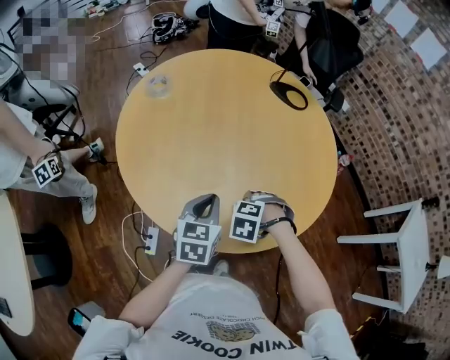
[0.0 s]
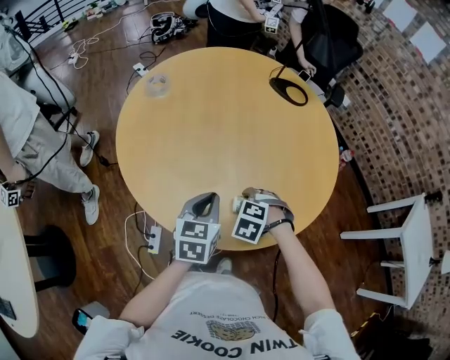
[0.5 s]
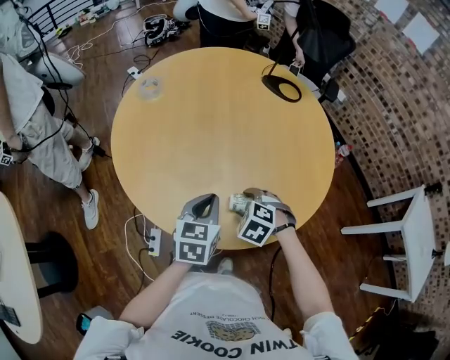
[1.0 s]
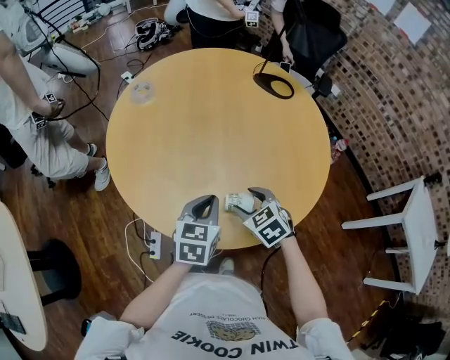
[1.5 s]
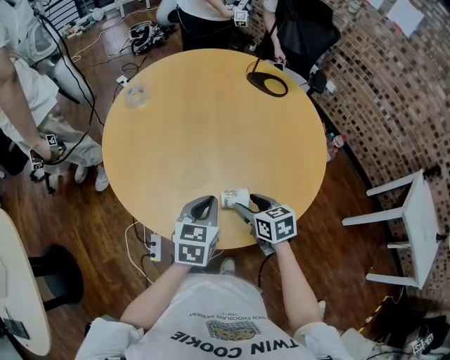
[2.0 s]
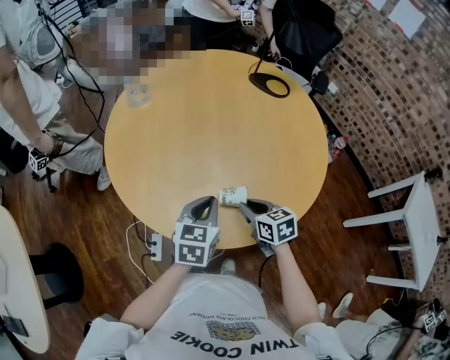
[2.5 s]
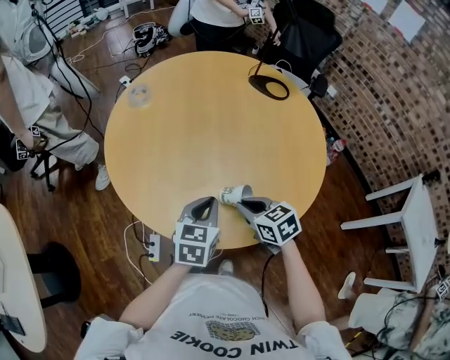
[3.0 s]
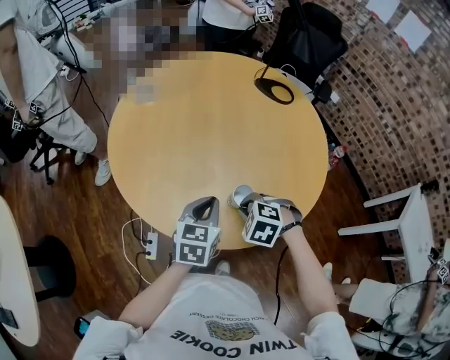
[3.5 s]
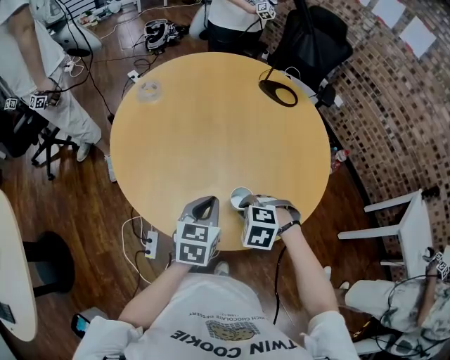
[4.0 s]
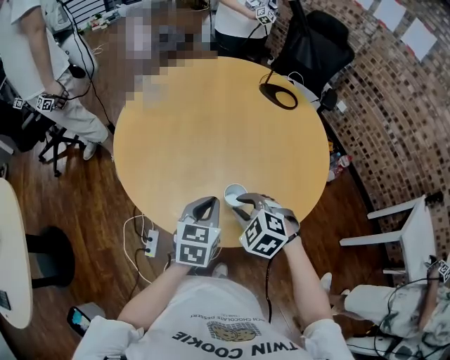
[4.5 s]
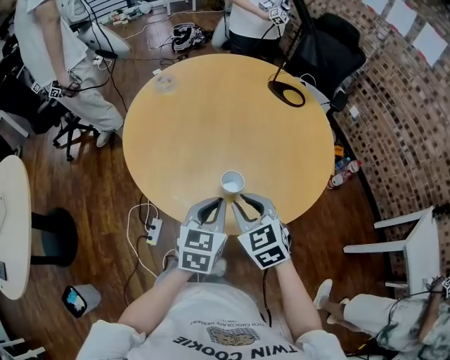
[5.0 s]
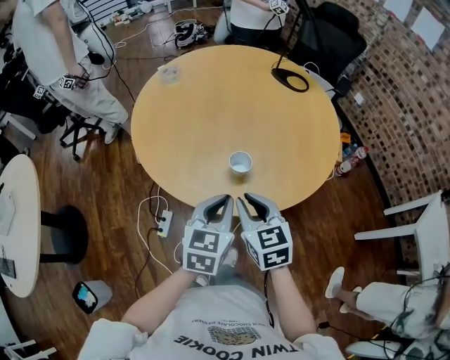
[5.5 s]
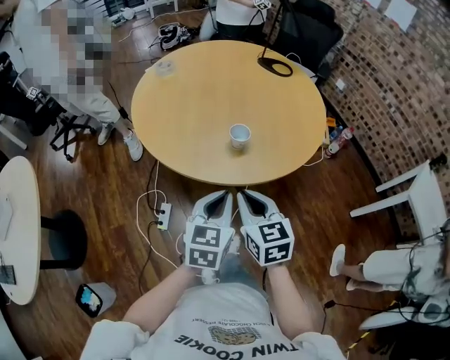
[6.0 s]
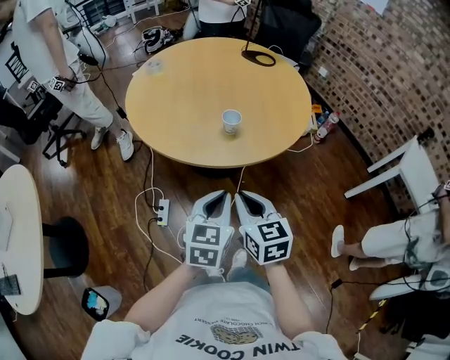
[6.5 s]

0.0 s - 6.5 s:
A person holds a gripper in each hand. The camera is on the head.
0.0 s - 2.0 s: The right gripper shifts by roughly 5 cm, and twists about 70 degrees clockwise, seen from behind.
2.0 s - 4.5 s: The right gripper moves upward, about 5 cm, rolls counterclockwise, seen from behind, by roughly 60 degrees, and closes its fingers.
4.5 s - 6.5 s: Both grippers move backward, some 30 cm. The right gripper rolls clockwise, seen from behind, by roughly 50 degrees.

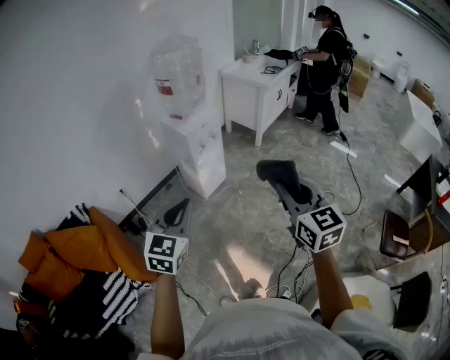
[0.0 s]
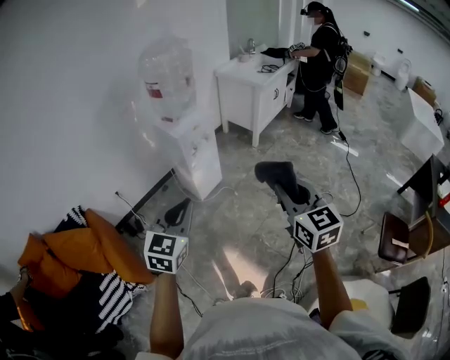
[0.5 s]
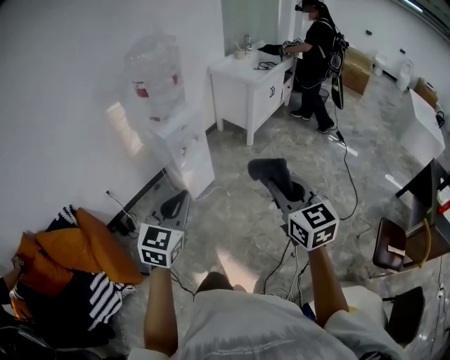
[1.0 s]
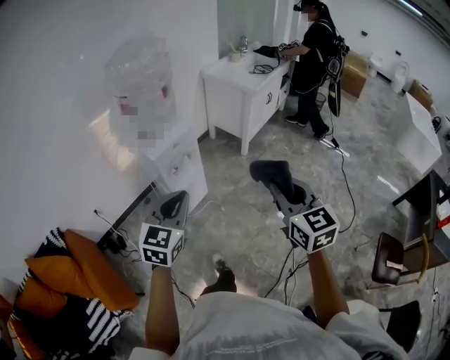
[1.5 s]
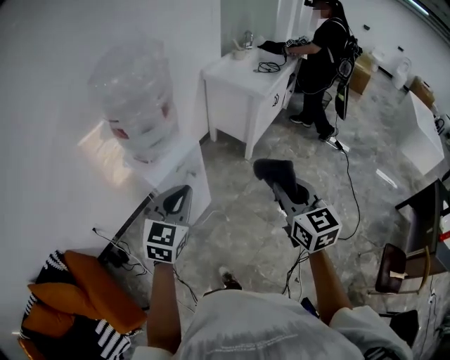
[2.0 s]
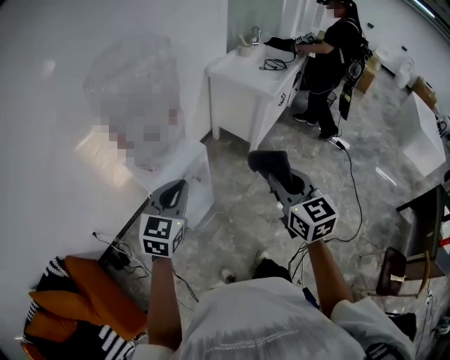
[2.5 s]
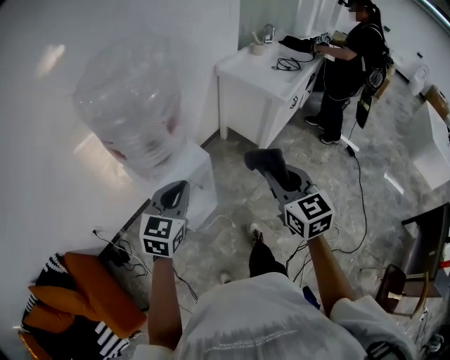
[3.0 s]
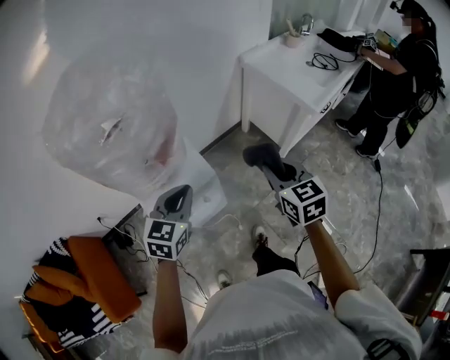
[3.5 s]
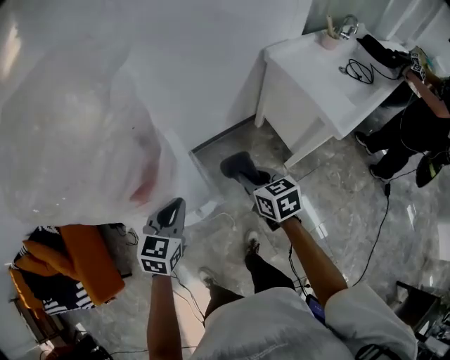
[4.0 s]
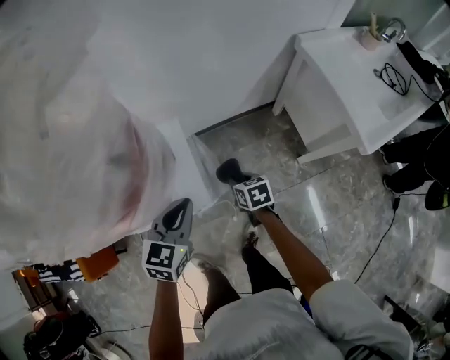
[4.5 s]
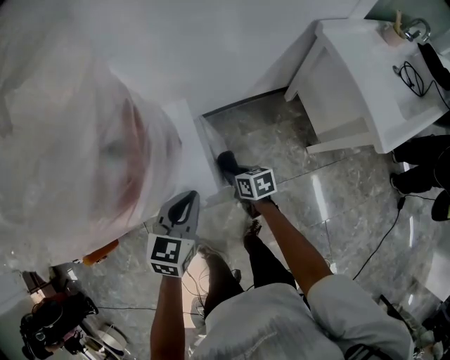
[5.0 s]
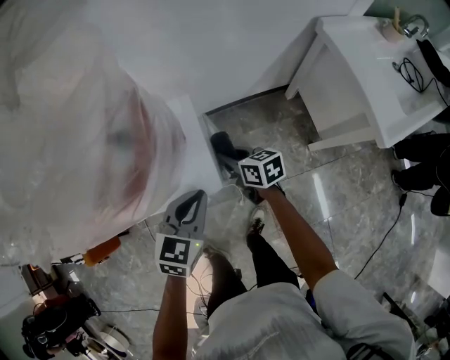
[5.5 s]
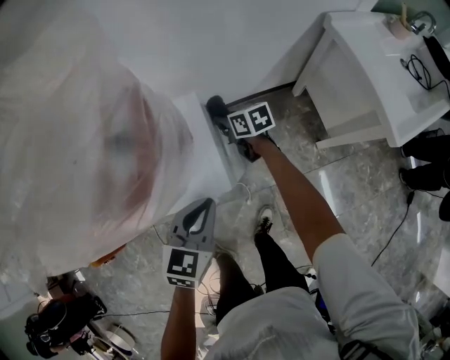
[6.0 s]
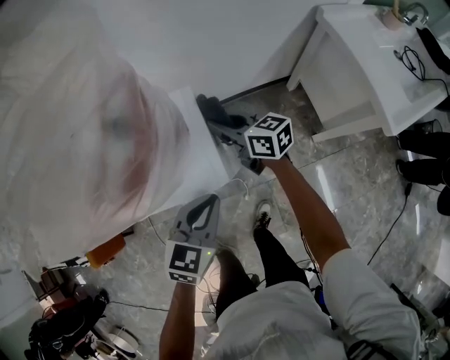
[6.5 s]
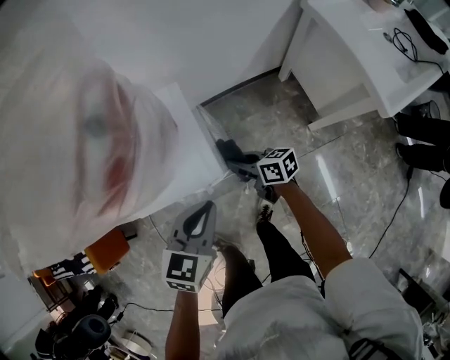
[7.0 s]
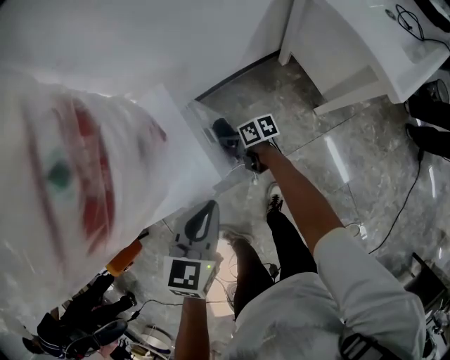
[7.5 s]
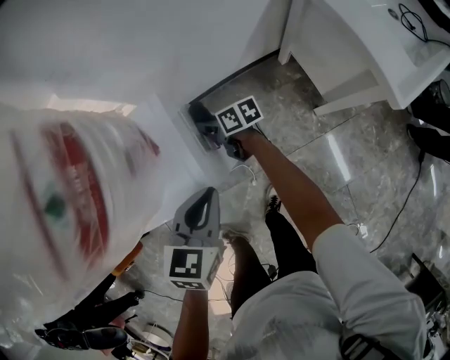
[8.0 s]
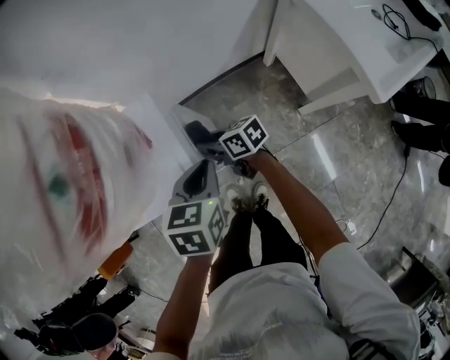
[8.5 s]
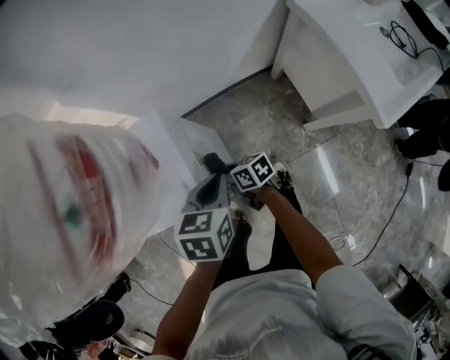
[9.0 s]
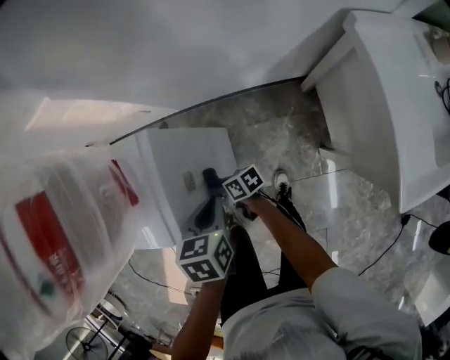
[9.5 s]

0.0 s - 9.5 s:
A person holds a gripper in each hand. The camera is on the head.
0.0 s - 2.0 s: The pair of grippers is taken forward, roughly 40 cm.
2.0 s - 4.0 s: The right gripper moves roughly 50 cm, and turns by approximately 50 degrees, while the left gripper changes place by approximately 35 cm, and rotates approximately 40 degrees.
4.0 s - 5.5 s: The left gripper is displaced downward by roughly 5 cm, while the right gripper travels downward, to the left and forward by roughly 20 cm, and turns by about 30 degrees.
5.5 s - 7.5 s: The right gripper heads downward, covering some 15 cm, and swivels roughly 30 degrees.
7.5 s - 9.5 s: The left gripper moves about 20 cm, and changes its angle by roughly 40 degrees, while the right gripper travels upward and back again, roughly 10 cm each way, and rotates roughly 30 degrees.

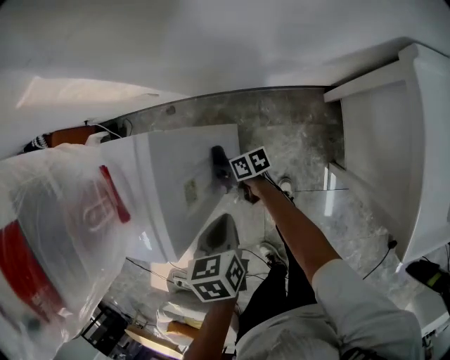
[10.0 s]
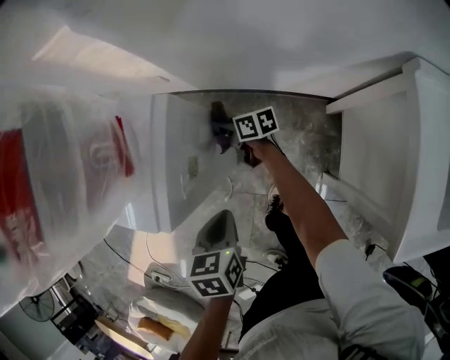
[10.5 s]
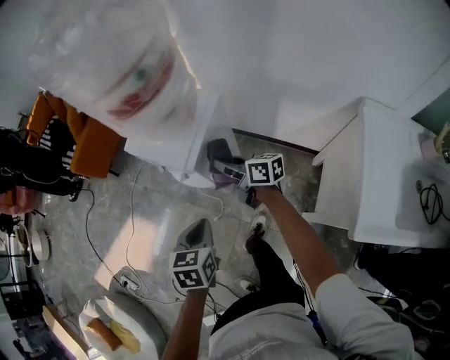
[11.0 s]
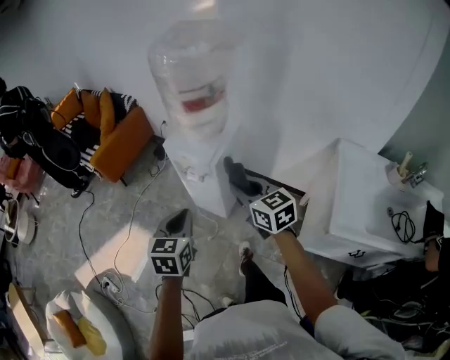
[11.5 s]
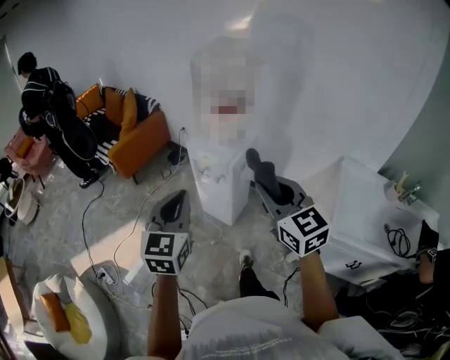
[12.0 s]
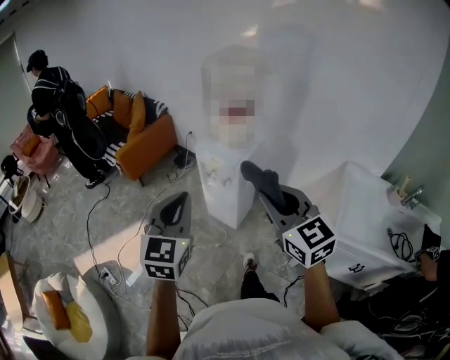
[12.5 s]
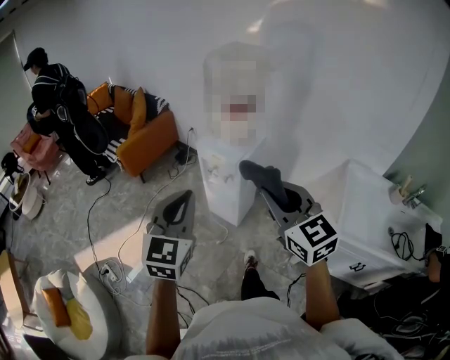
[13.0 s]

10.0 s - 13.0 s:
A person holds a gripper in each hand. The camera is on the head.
10.0 s - 11.5 s: The left gripper travels upward, backward and to the left by some 40 cm, and angles its fingers upward, by about 40 degrees, while the right gripper heads upward and backward, covering approximately 60 cm, and rotates around the line of its fingers by about 70 degrees, counterclockwise from behind.
11.5 s - 13.0 s: The left gripper travels upward, backward and to the left by approximately 20 cm, and rotates some 30 degrees, while the right gripper goes approximately 20 cm upward and backward, and turns by roughly 20 degrees.

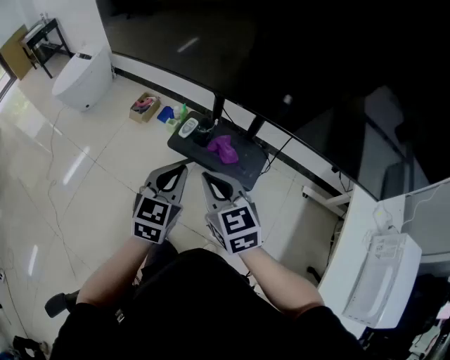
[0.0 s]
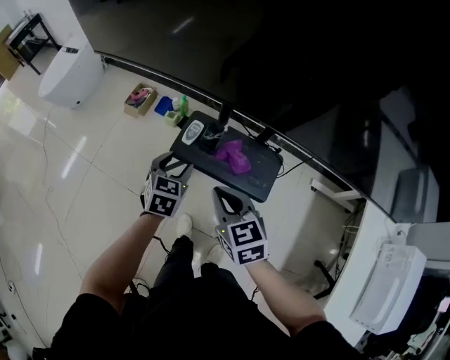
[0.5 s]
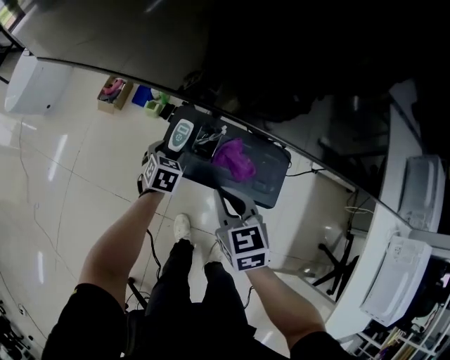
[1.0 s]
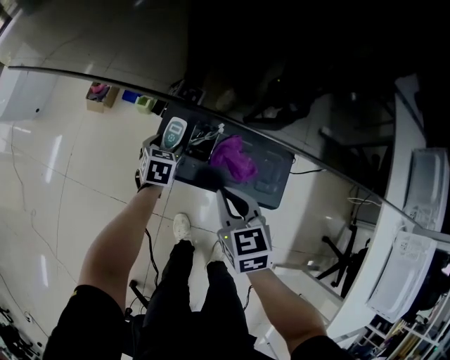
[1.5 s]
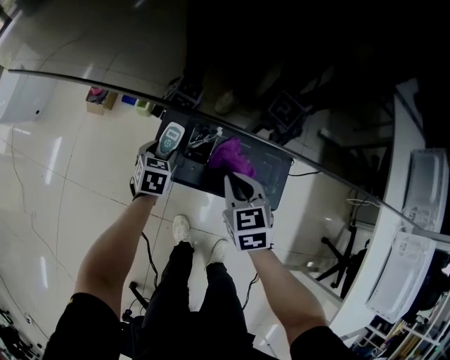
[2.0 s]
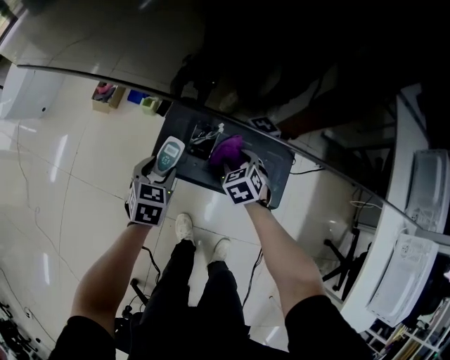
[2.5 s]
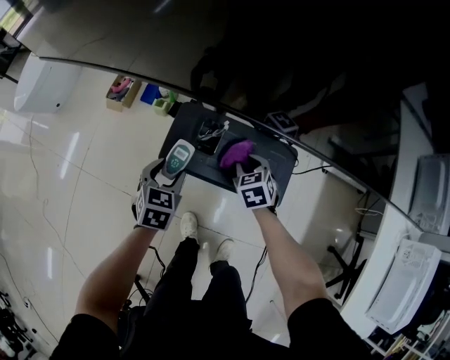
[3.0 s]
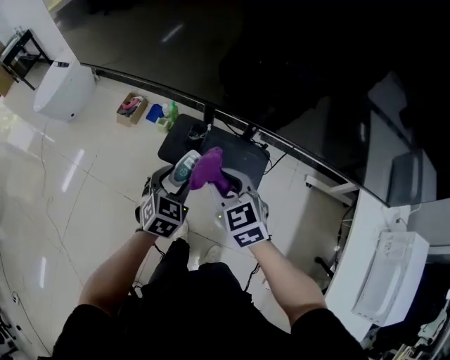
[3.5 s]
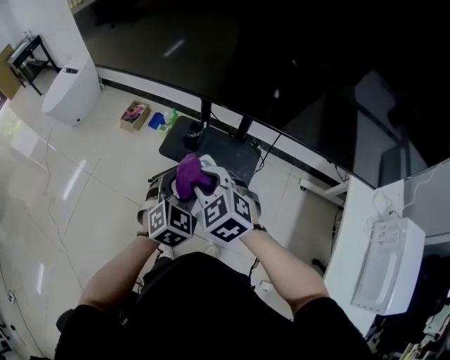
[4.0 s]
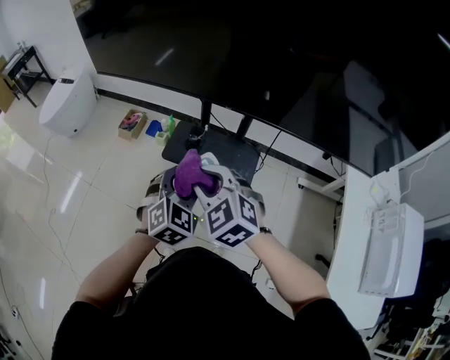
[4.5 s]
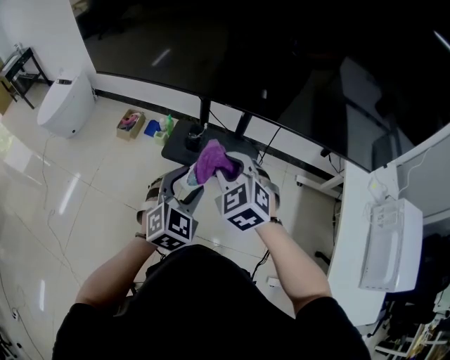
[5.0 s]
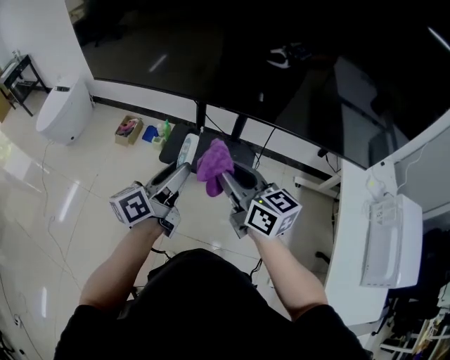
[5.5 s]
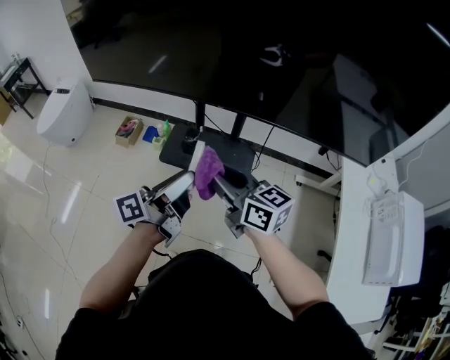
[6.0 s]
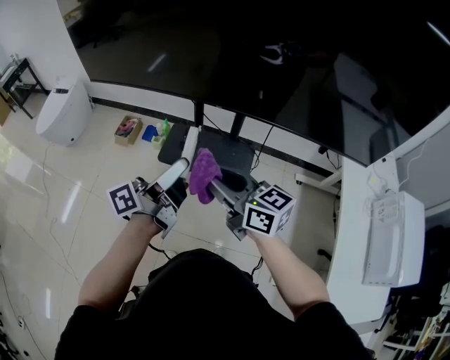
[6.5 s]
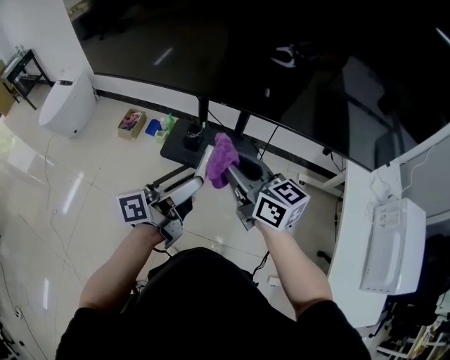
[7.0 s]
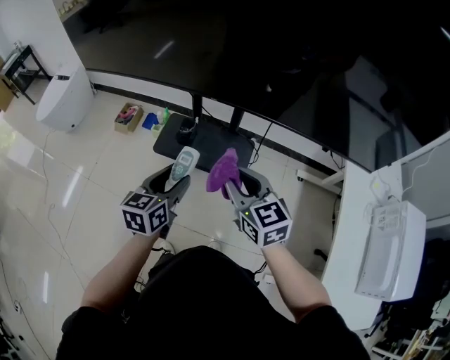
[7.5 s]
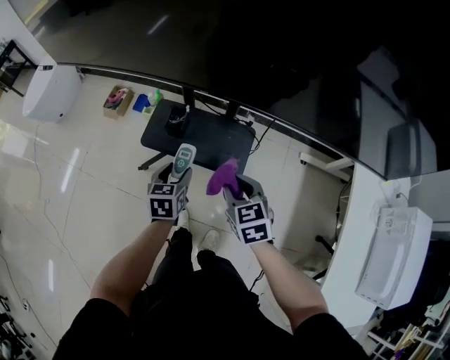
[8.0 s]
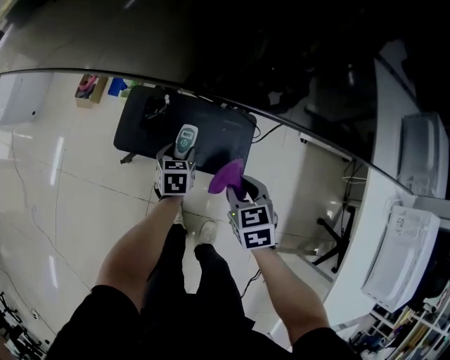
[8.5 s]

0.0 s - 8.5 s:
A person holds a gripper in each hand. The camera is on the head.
0.0 s - 2.0 s: The grippers both shift downward and forward by some 40 cm. The left gripper swivels approximately 30 degrees, and opens up. The right gripper swivels about 30 degrees.
2.0 s - 4.0 s: Both grippers move upward and backward, approximately 40 cm. The right gripper turns by some 40 degrees, and opens and closes again. The left gripper swivels about 30 degrees.
4.0 s - 6.5 s: The left gripper is displaced upward by about 15 cm, and points its fingers some 50 degrees further upward. The right gripper goes about 10 cm upward, and tips its fingers upward by roughly 30 degrees.
6.5 s - 8.5 s: The left gripper goes roughly 50 cm downward and forward, and tilts its fingers about 70 degrees downward. Meanwhile the right gripper heads downward, to the right and forward, covering about 40 cm, and angles its fingers downward, by roughly 40 degrees.
